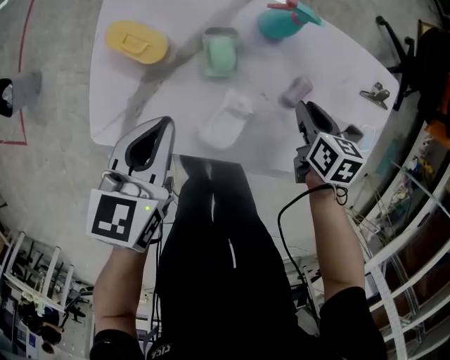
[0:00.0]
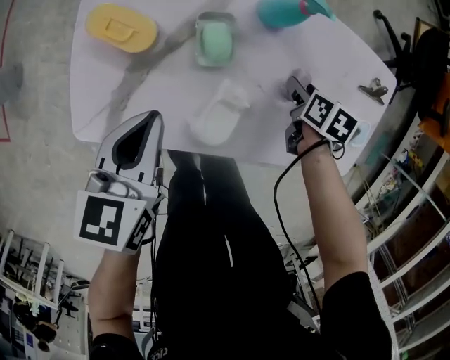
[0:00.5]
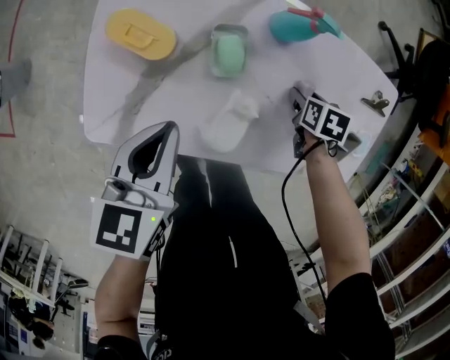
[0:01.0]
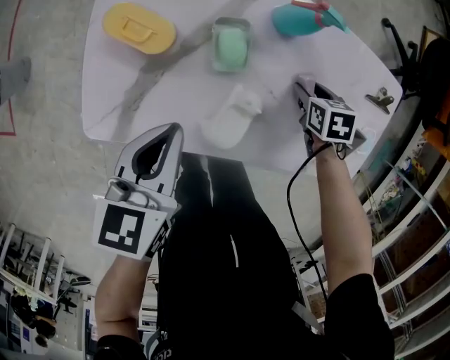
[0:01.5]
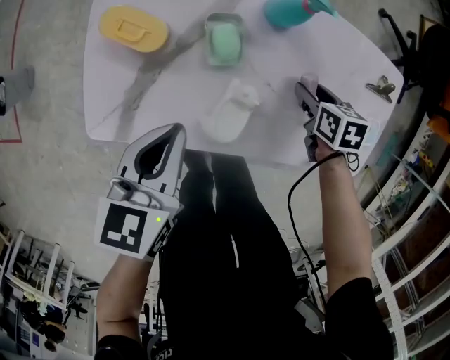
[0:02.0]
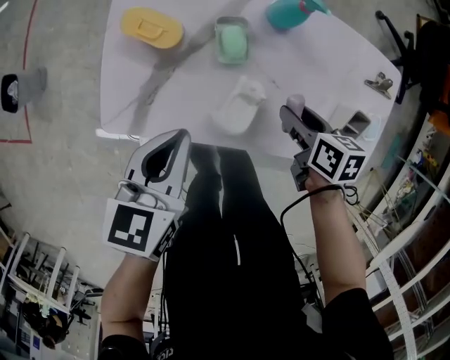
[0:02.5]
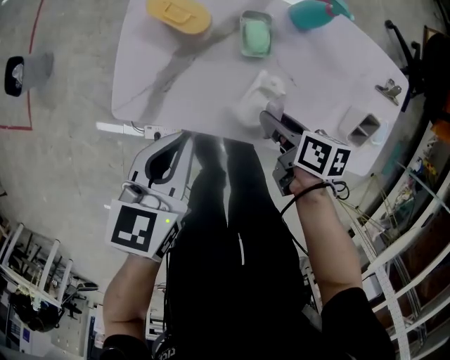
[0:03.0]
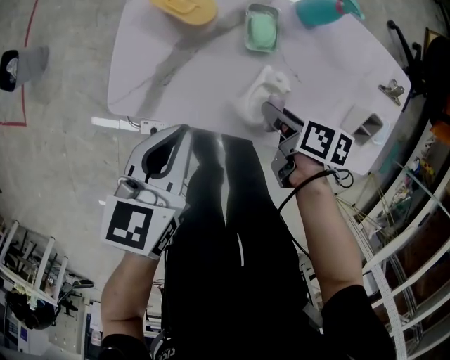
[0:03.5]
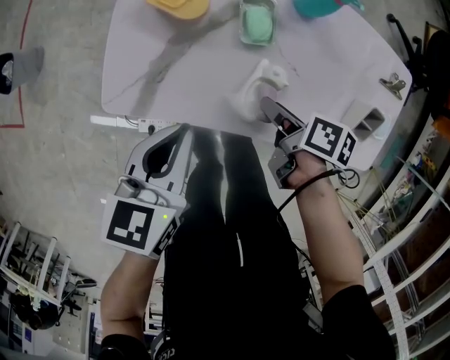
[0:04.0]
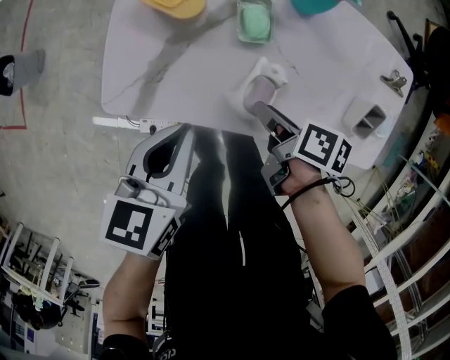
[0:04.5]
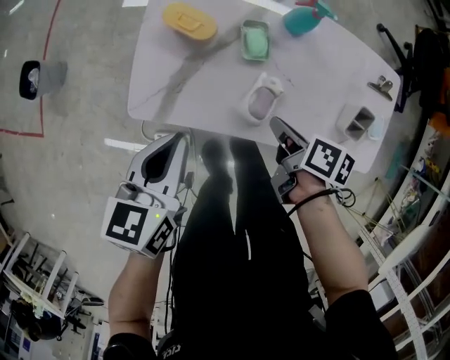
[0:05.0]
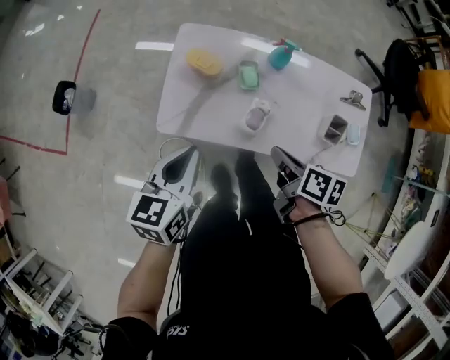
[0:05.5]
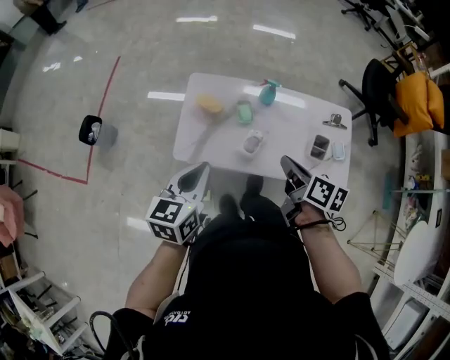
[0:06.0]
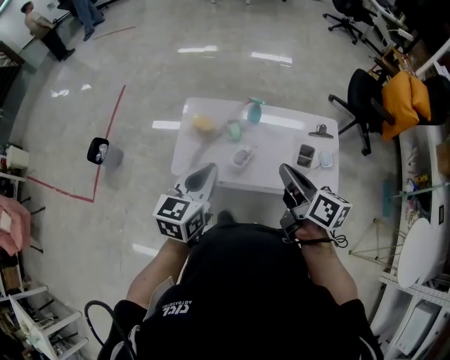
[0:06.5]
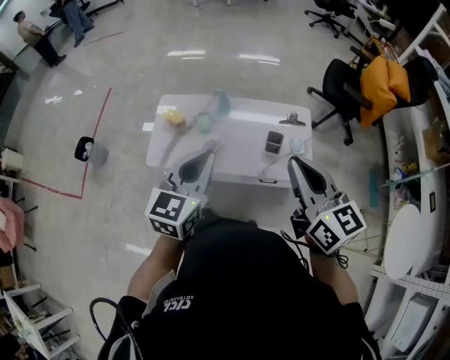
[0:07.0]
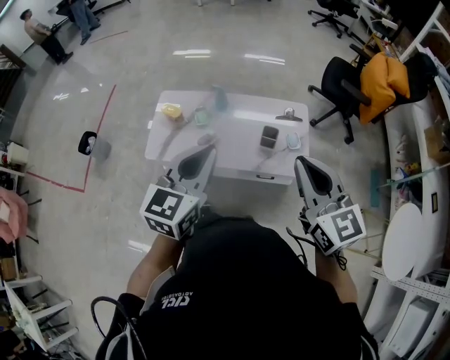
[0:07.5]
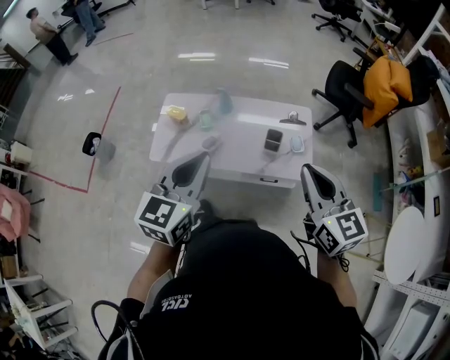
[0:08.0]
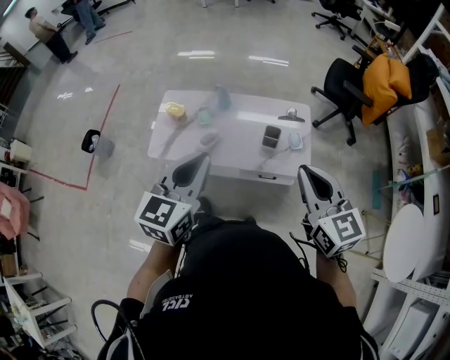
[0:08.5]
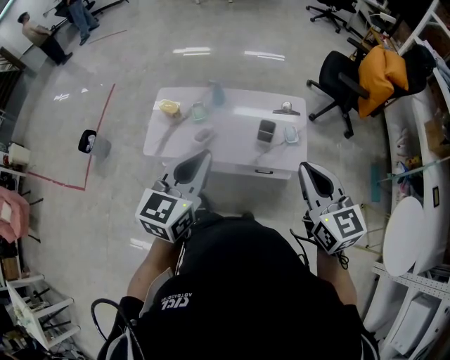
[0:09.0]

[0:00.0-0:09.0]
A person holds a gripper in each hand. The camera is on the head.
0.0 to 2.0 s: The right gripper opens its fingers.
2.0 to 4.5 s: The left gripper is displaced backward and to the left by approximately 10 cm. Meanwhile the right gripper moves to the left and backward, about 20 cm, and swivels some 40 degrees.
4.5 to 7.0 s: The left gripper is displaced upward and to the right by roughly 50 cm, and turns by approximately 40 degrees. The right gripper travels upward by approximately 60 cm, points its fingers roughly 40 degrees further upward, and closes.
7.0 to 9.0 s: The right gripper is displaced to the right and backward by about 10 cm. The left gripper is displaced backward and to the right by about 10 cm.

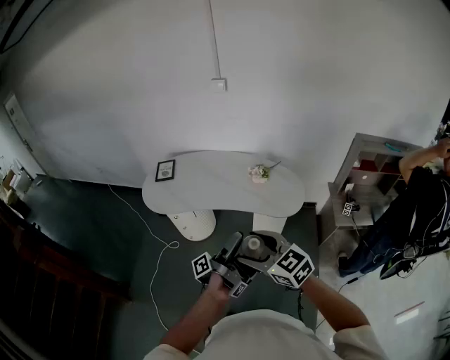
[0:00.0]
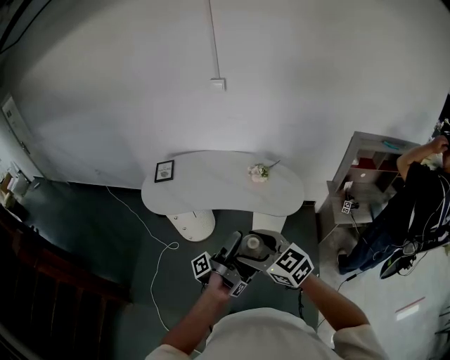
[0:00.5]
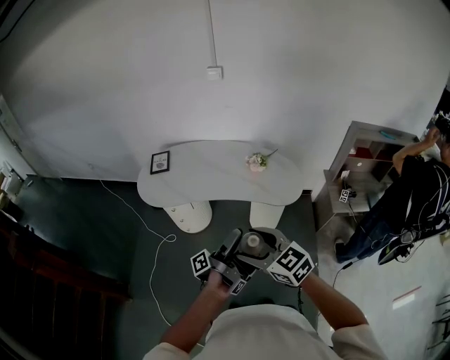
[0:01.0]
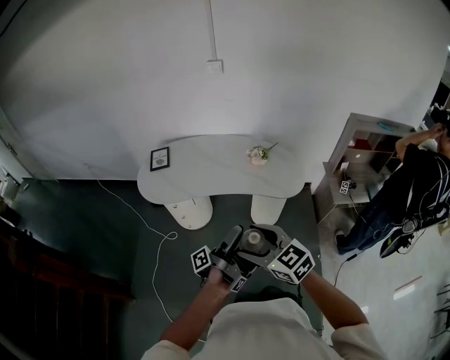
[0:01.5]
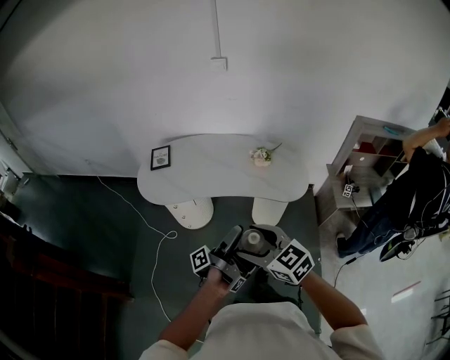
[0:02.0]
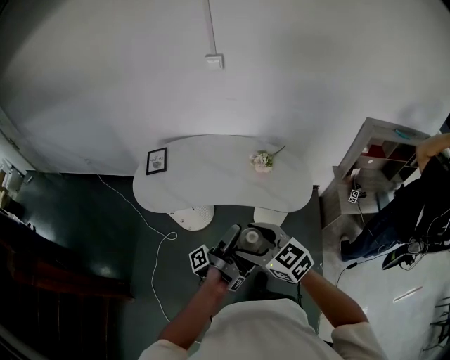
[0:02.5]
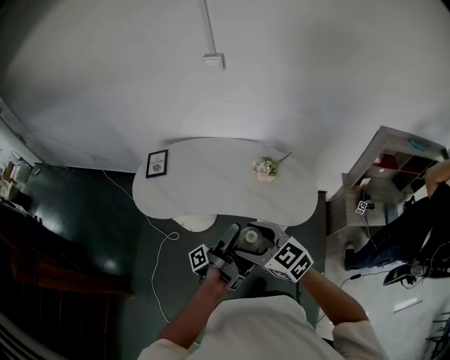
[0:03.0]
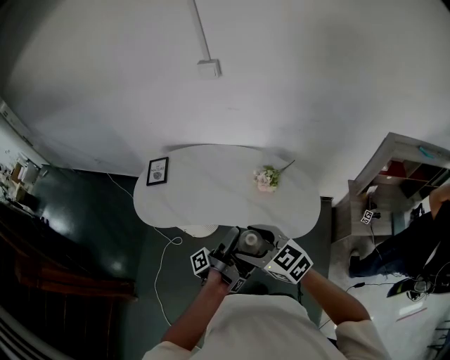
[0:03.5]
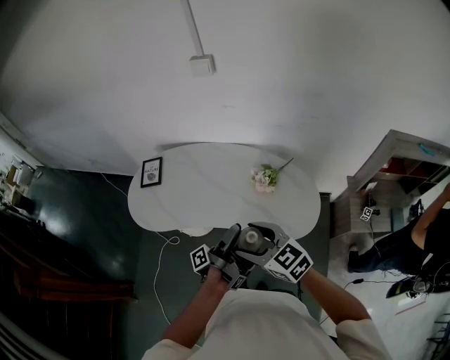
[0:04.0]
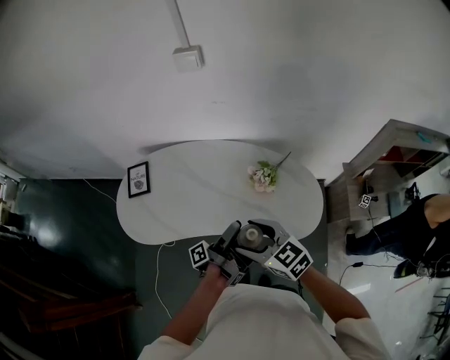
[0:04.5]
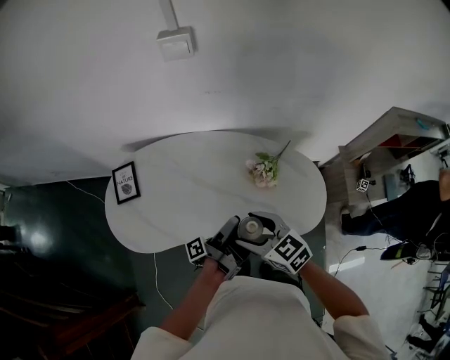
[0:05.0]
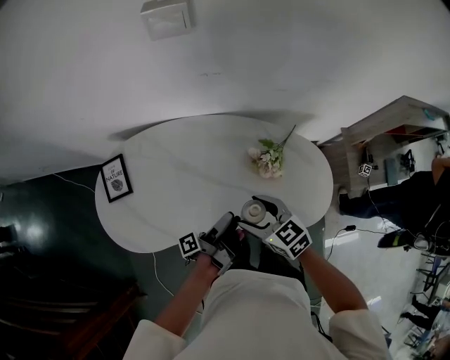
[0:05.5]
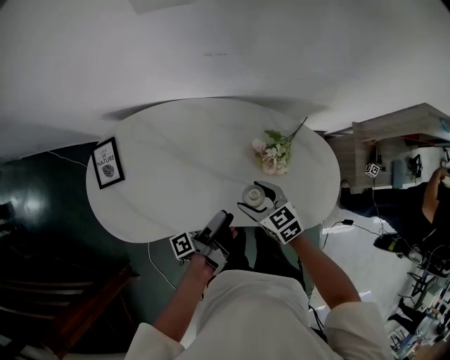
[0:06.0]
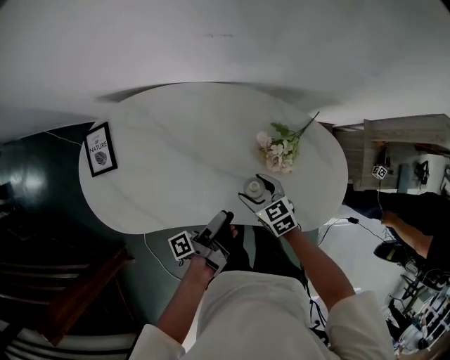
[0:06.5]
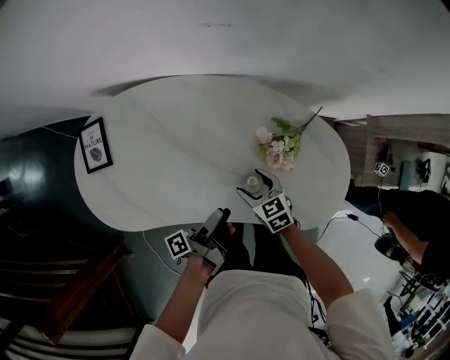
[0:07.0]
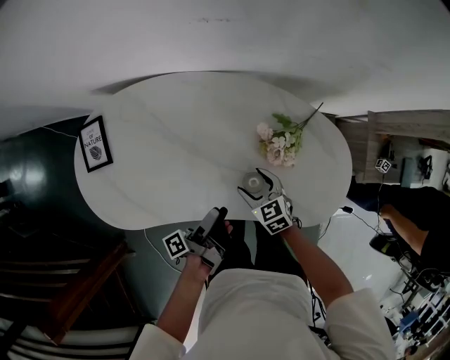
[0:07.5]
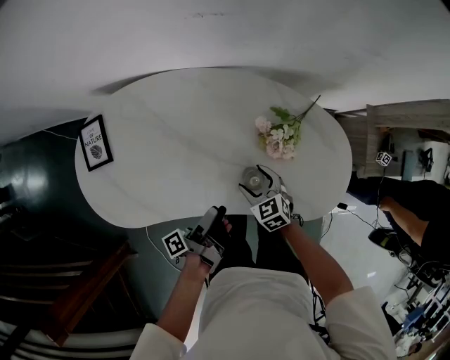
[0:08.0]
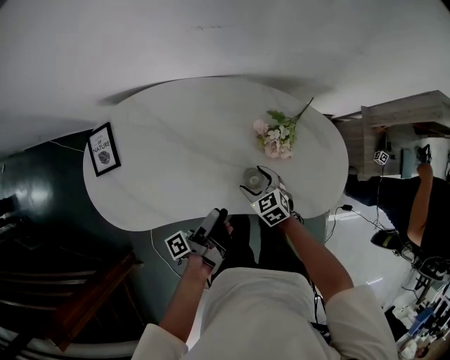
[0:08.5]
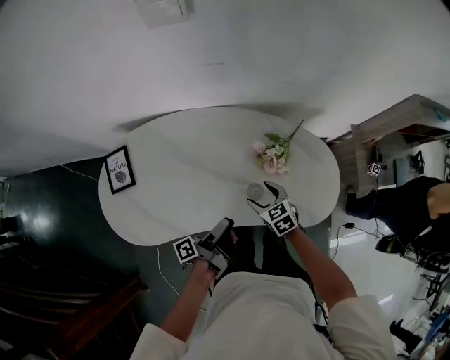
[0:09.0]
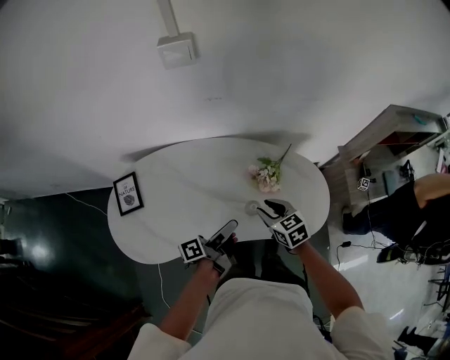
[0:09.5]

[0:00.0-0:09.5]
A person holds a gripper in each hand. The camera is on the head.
0.0 to 2.0 s: The right gripper moves approximately 10 cm.
2.0 to 4.0 s: The right gripper shifts by some 30 cm.
4.0 to 5.5 s: The right gripper changes place by roughly 30 cm, and turns by roughly 20 degrees.
5.5 to 7.5 s: The right gripper moves downward, approximately 25 cm.
7.5 to 9.5 s: The right gripper moves upward, about 20 cm, and closes.

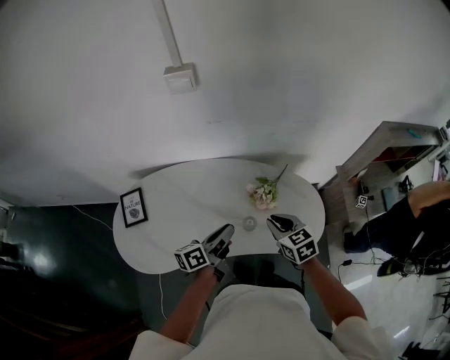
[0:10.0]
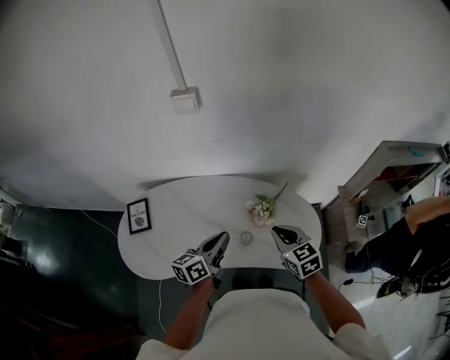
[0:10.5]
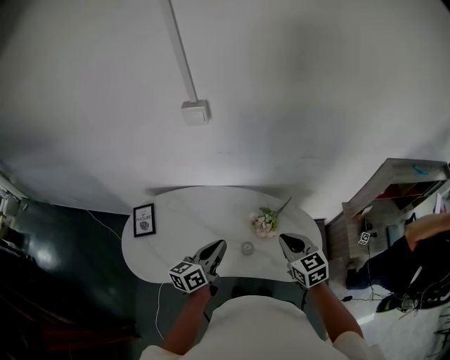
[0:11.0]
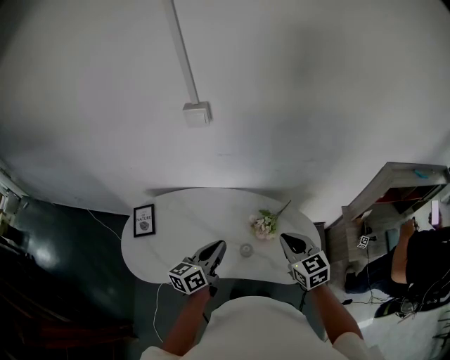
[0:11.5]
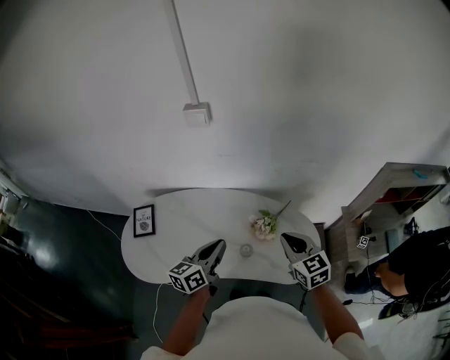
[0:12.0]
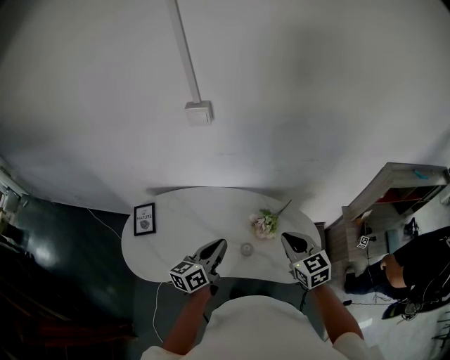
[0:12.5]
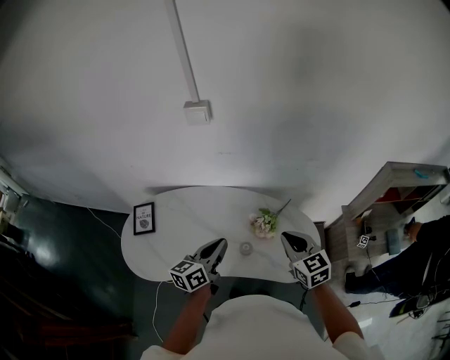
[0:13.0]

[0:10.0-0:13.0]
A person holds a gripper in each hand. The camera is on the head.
10.0 to 11.5 s: The right gripper goes about 10 cm upward.

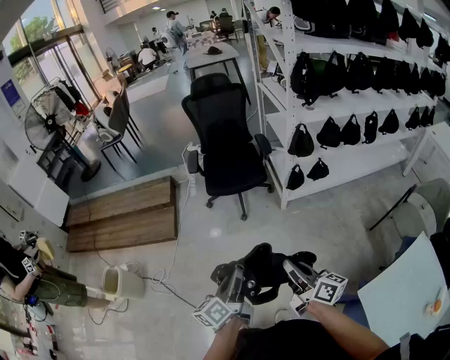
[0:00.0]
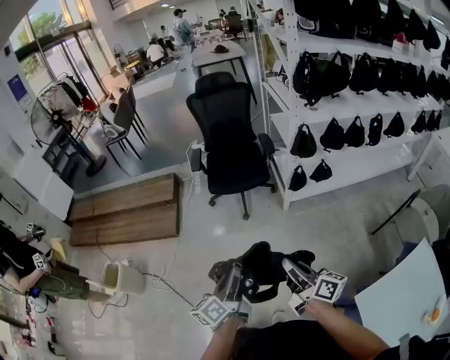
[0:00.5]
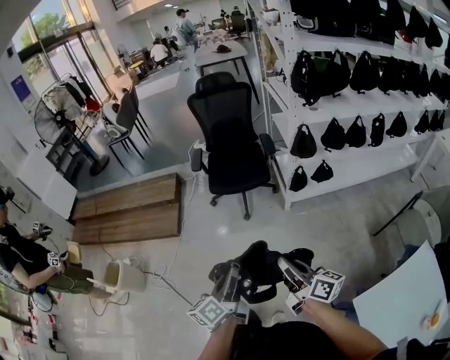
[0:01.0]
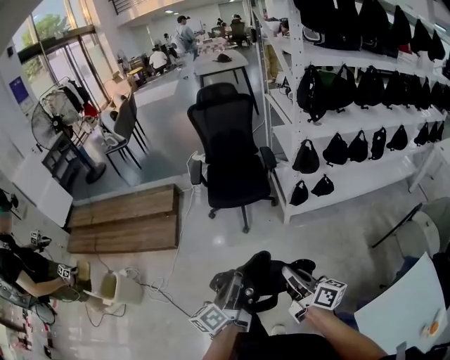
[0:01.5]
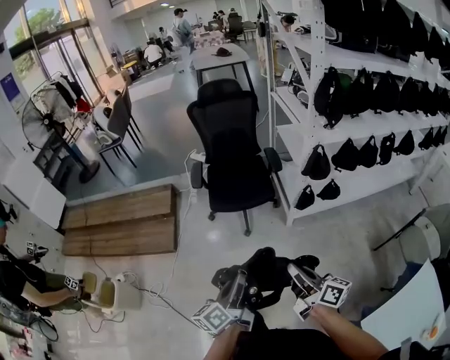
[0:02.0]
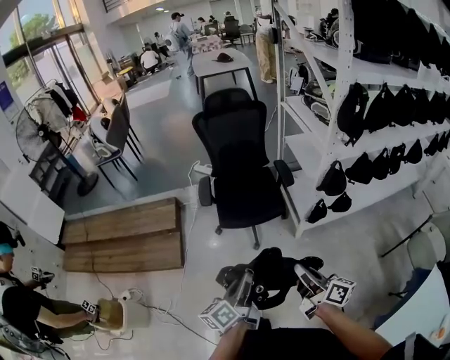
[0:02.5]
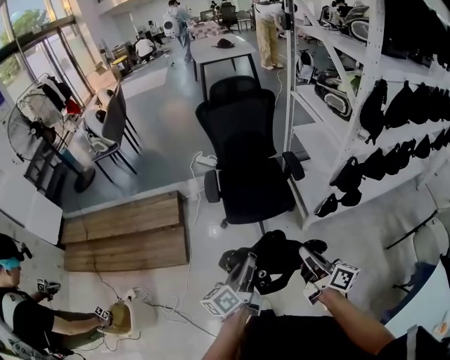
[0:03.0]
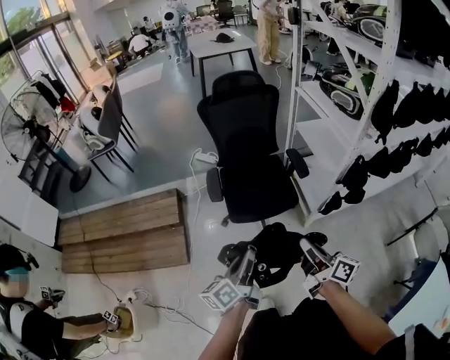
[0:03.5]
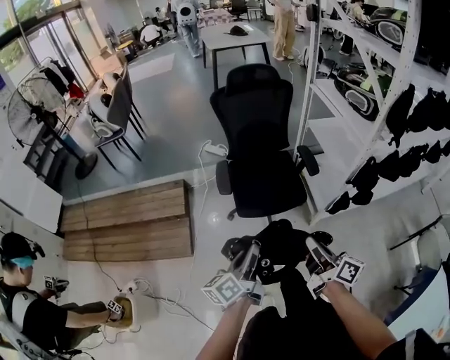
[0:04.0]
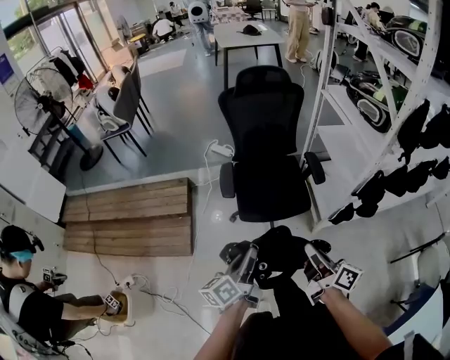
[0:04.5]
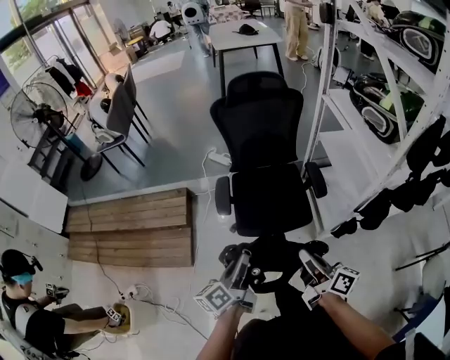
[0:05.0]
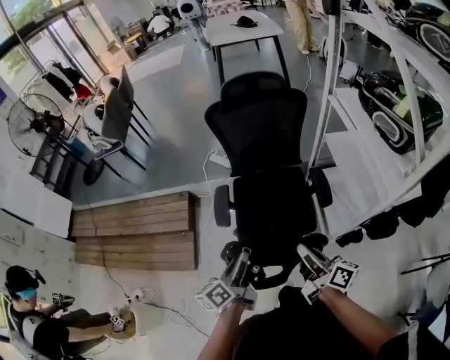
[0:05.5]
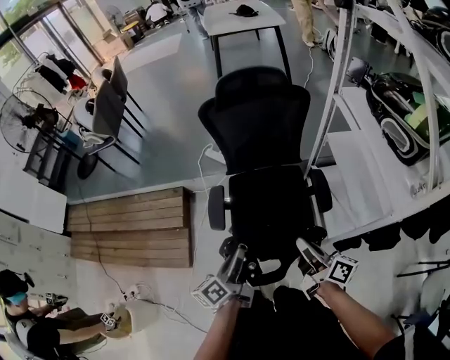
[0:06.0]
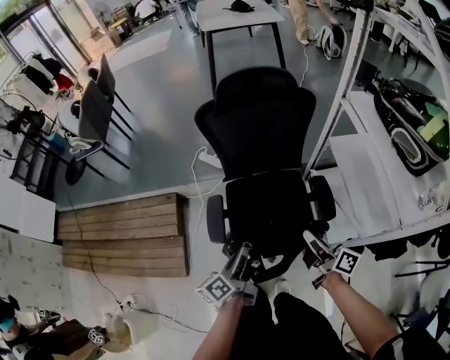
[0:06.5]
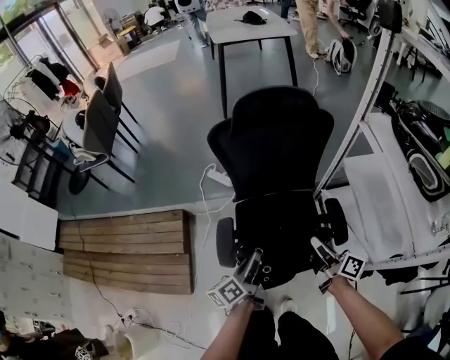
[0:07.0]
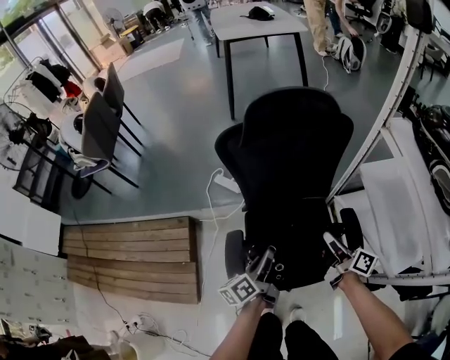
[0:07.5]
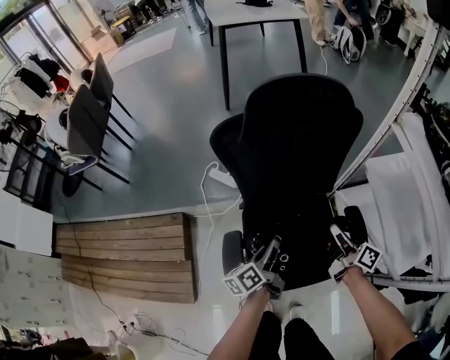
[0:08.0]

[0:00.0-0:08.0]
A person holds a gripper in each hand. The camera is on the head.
0.0 to 2.0 s: Both grippers travel together forward, about 15 cm.
2.0 to 4.0 s: Both grippers move forward and to the left, about 35 cm.
4.0 to 6.0 s: Both grippers travel together forward, about 30 cm.
6.0 to 8.0 s: Both grippers move forward and downward, about 35 cm.
